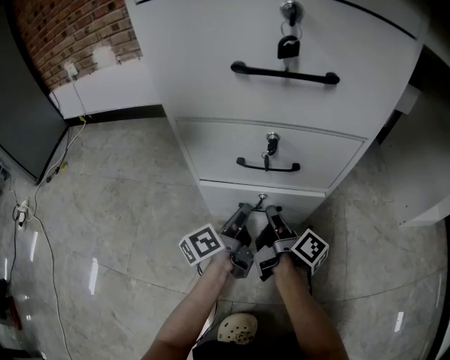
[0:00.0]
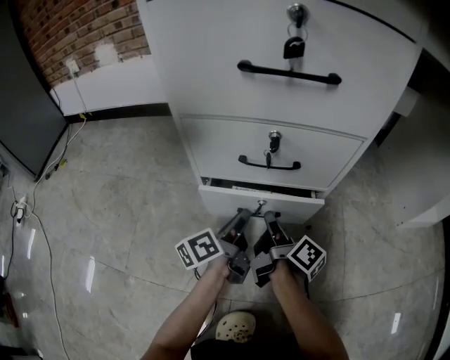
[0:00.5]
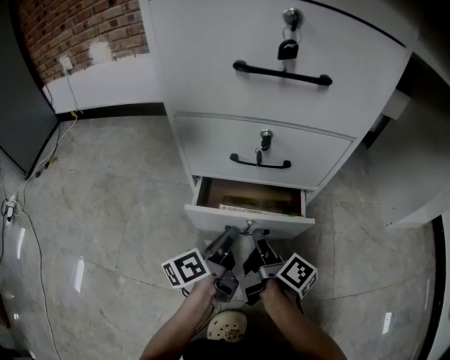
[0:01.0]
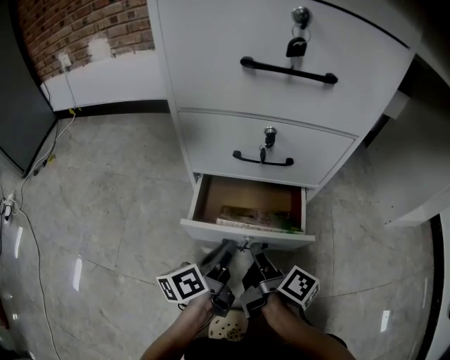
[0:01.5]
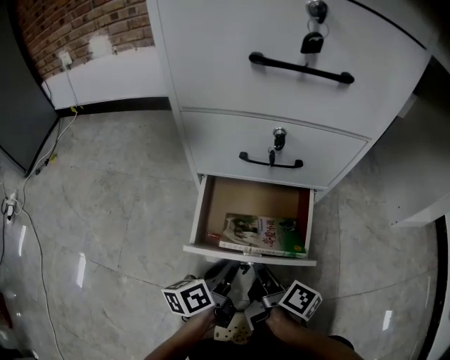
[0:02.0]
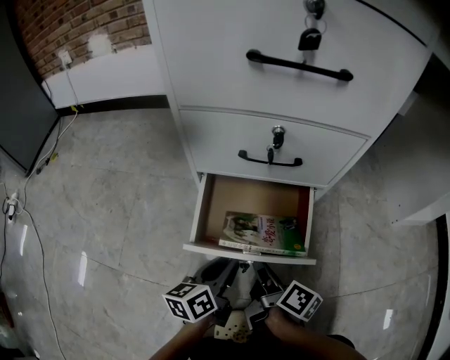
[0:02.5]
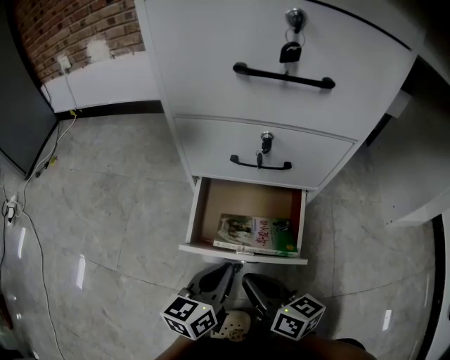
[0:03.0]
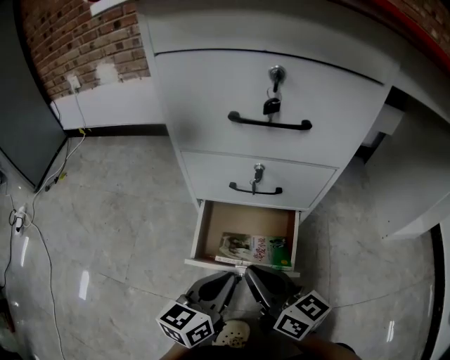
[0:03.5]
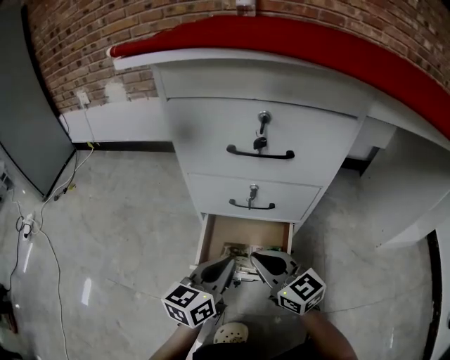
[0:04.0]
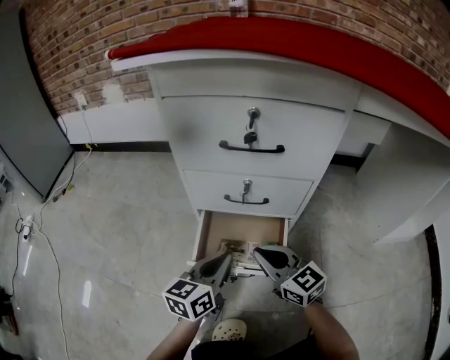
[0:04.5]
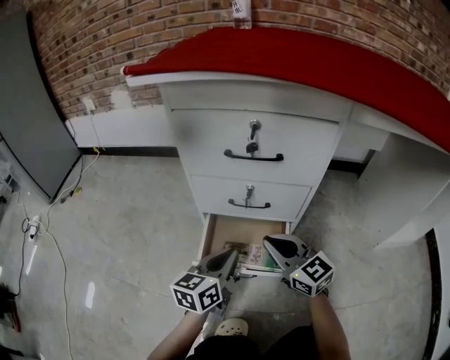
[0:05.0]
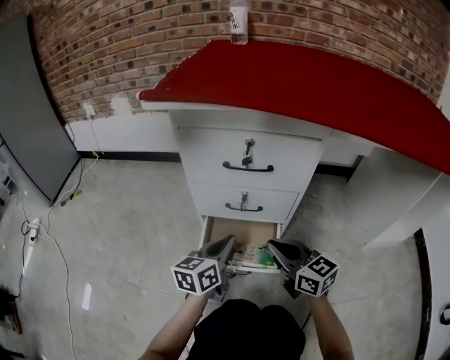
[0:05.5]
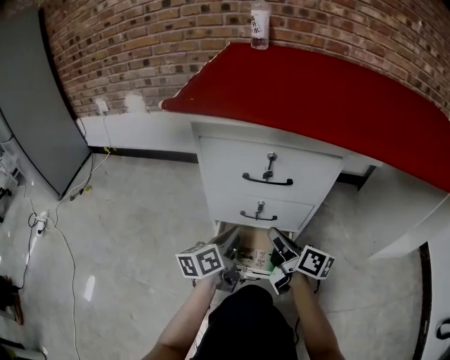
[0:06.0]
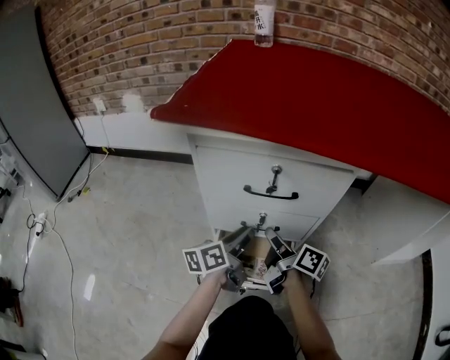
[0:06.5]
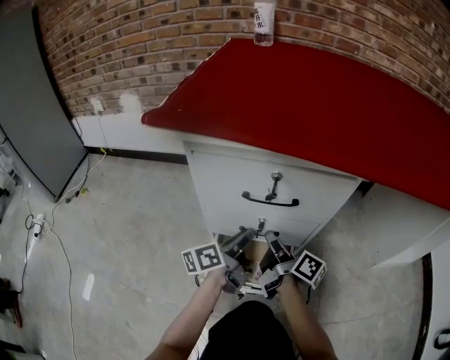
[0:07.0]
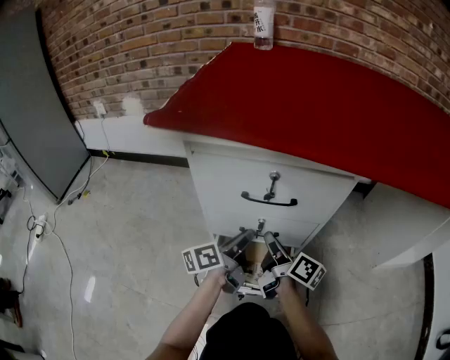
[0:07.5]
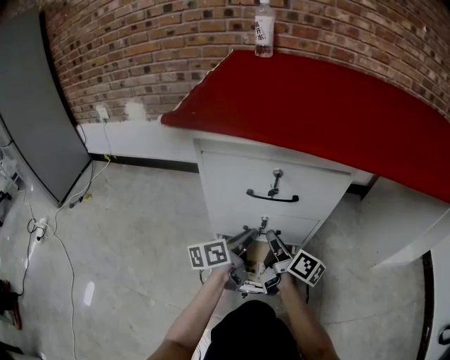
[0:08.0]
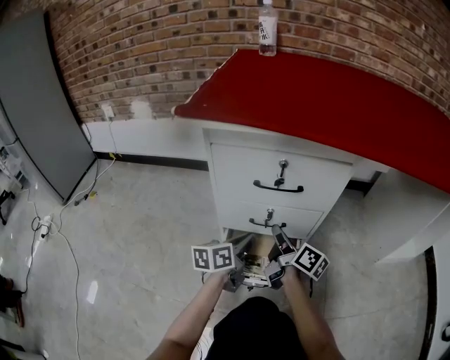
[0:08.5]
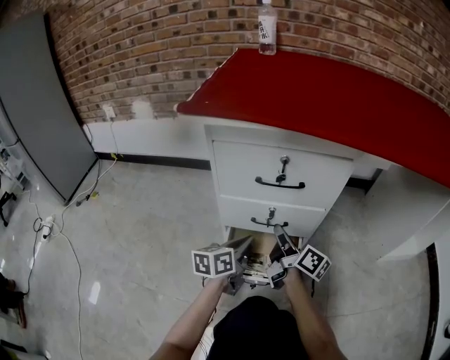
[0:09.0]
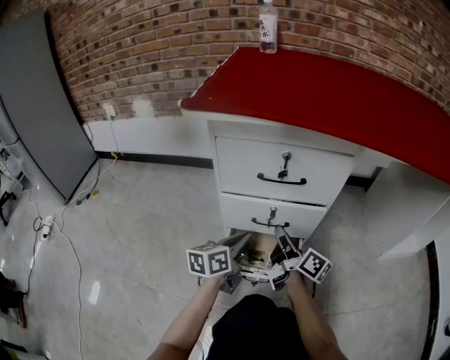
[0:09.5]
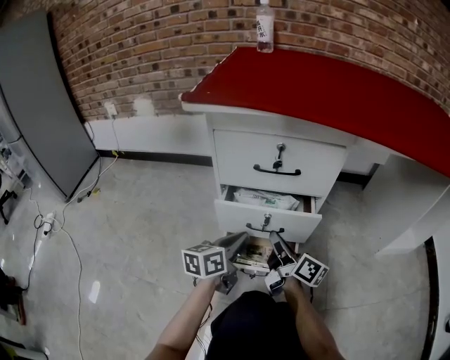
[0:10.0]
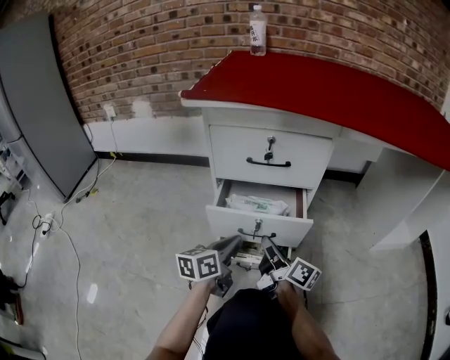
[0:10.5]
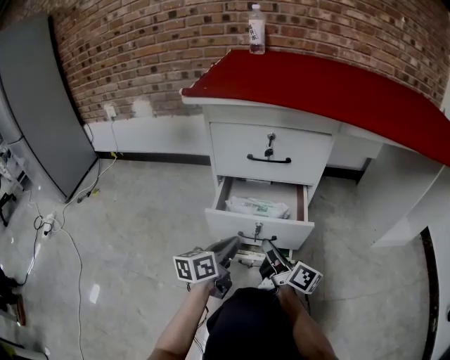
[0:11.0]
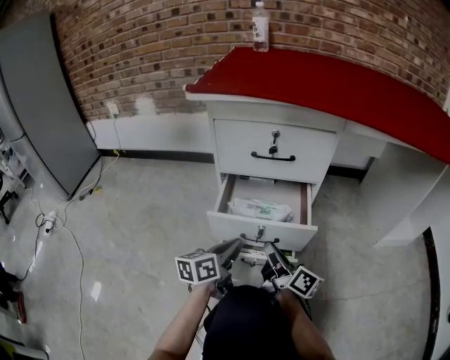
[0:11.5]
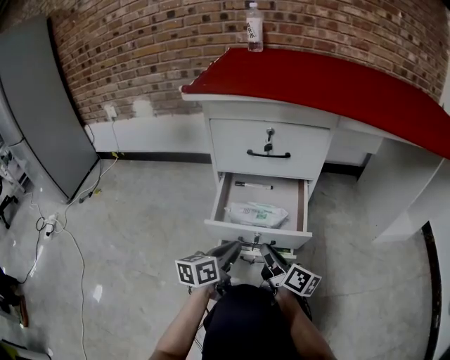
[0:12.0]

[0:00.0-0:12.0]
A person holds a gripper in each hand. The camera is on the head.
0.0 to 2.0 s: Both grippers move backward, roughly 15 cm.
2.0 to 4.0 s: The grippers both shift upward by roughly 20 cm. The left gripper turns by approximately 40 degrees; the right gripper rolls counterclockwise, seen from behind, by about 70 degrees.
4.0 to 6.0 s: The left gripper travels forward and upward by approximately 10 cm, and rotates approximately 20 degrees. Meanwhile the right gripper heads upward and forward, covering approximately 10 cm, and twists some 50 degrees clockwise, seen from behind.
6.0 to 8.0 s: The two grippers go approximately 5 cm forward.
8.0 to 10.0 s: The two grippers go approximately 10 cm backward.
10.0 to 12.0 s: Both grippers travel together backward, approximately 10 cm.

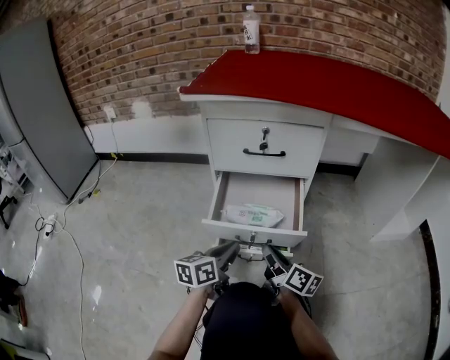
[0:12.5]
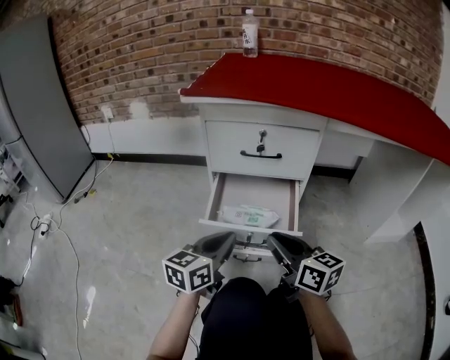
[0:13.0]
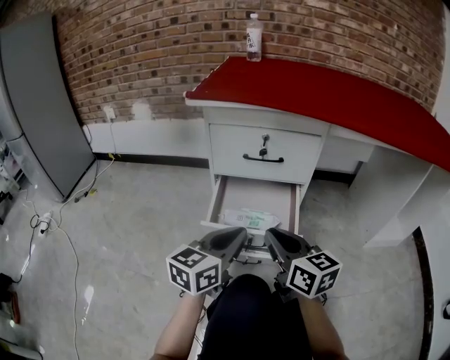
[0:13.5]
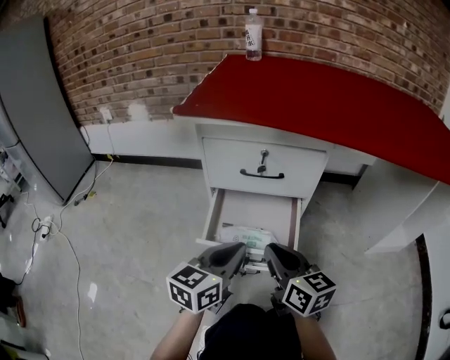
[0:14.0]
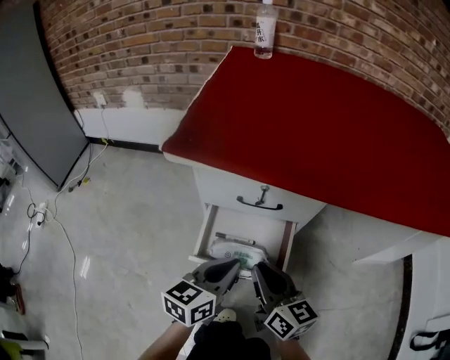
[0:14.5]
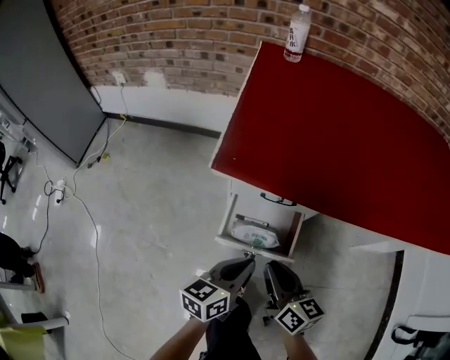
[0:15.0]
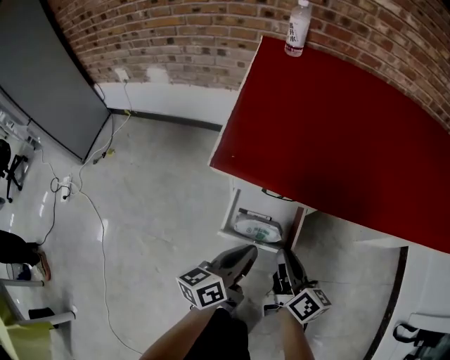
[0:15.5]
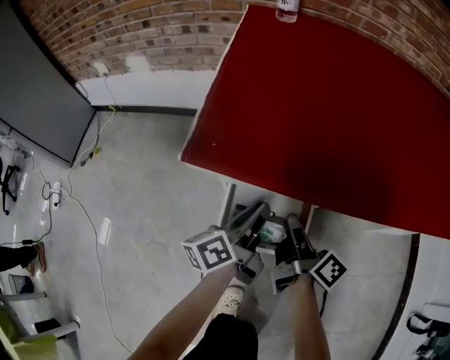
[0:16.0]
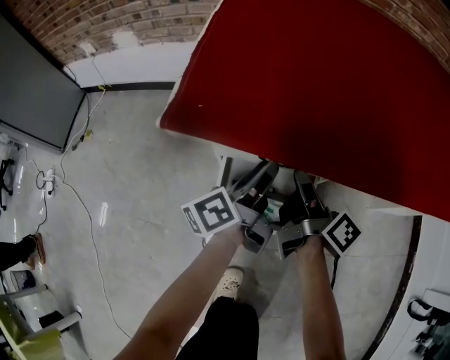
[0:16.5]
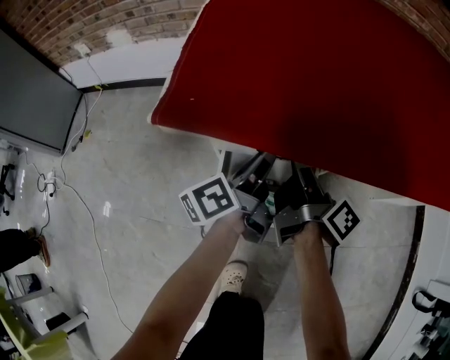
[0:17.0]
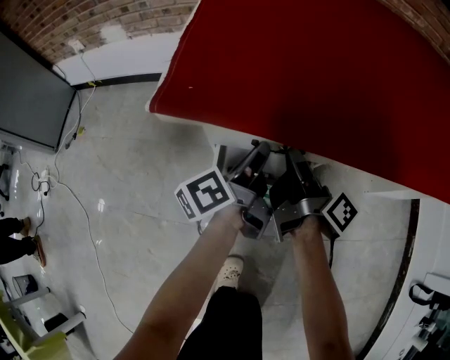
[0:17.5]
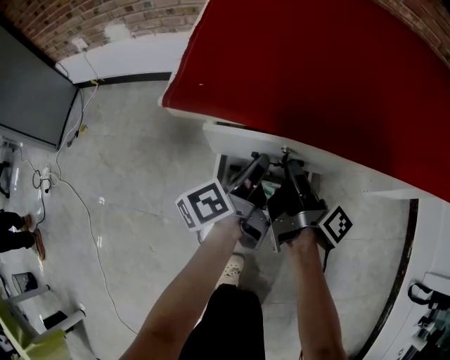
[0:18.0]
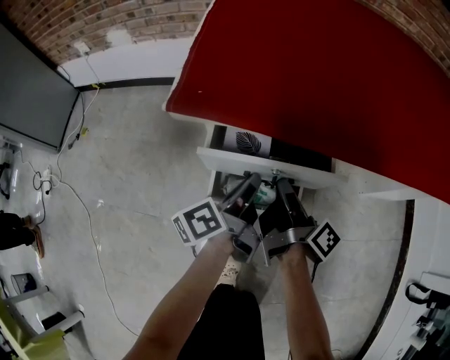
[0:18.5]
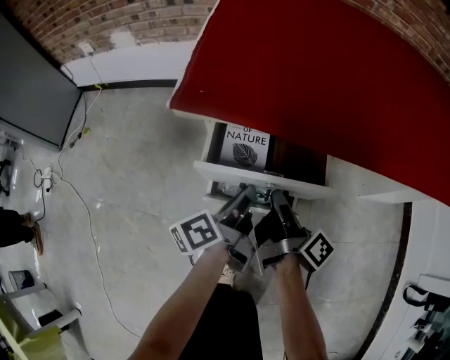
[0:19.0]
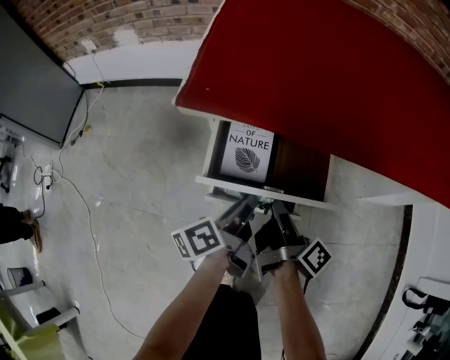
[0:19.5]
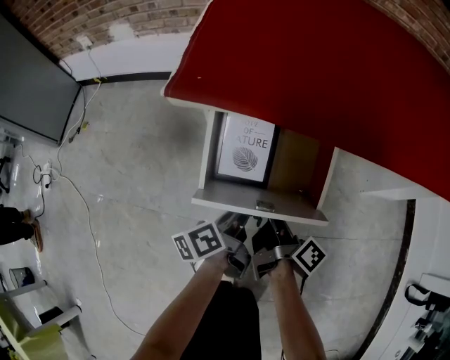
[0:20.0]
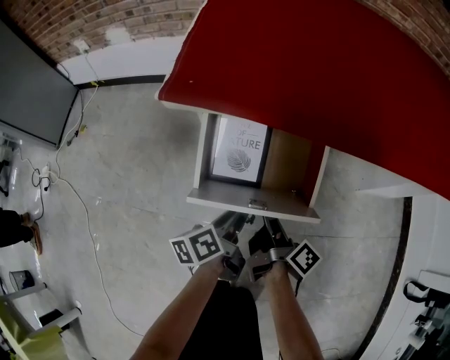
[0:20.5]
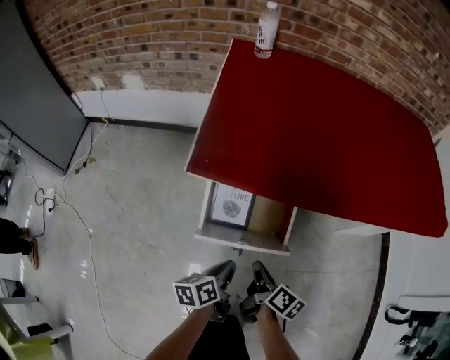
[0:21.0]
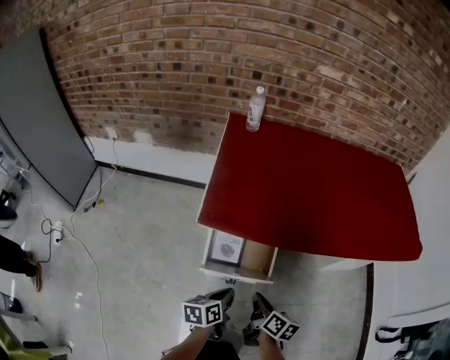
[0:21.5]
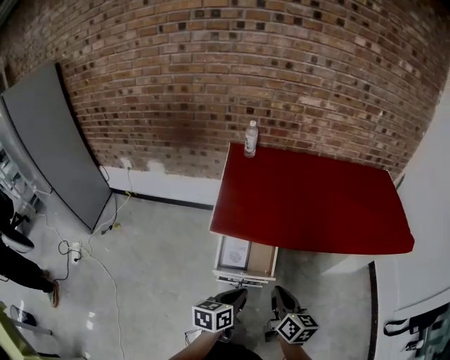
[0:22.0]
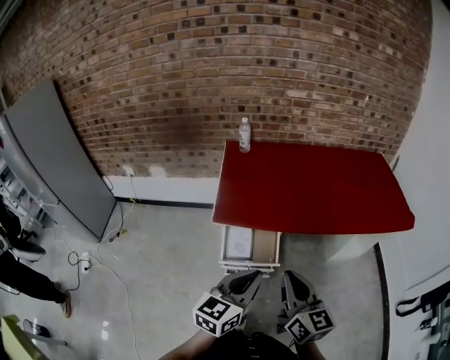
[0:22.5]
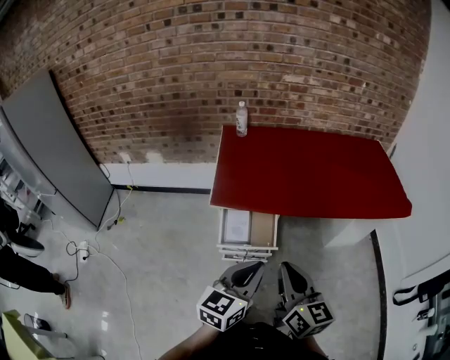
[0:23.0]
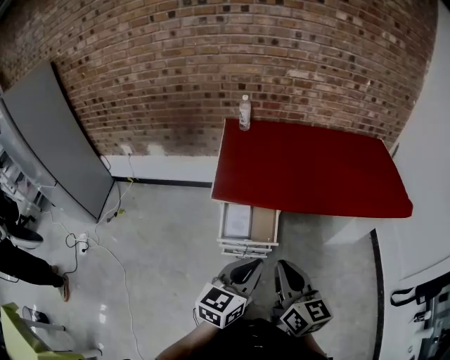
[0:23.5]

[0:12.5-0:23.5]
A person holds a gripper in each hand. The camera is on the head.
12.5 to 14.5 s: Both grippers travel together upward, about 15 cm. The right gripper changes its angle by approximately 30 degrees.
14.5 to 16.0 s: The right gripper is displaced forward by some 10 cm, and rotates around the line of its fingers by roughly 50 degrees, clockwise from behind. Meanwhile the left gripper is displaced forward and upward by about 10 cm, and twists roughly 40 degrees counterclockwise, seen from behind.
16.0 to 18.0 s: The left gripper opens and closes again.
18.0 to 20.0 s: Both grippers travel together backward and downward, roughly 15 cm.
20.0 to 21.5 s: Both grippers travel together upward, some 20 cm. The left gripper turns by some 30 degrees; the right gripper swivels roughly 40 degrees.
21.5 to 23.5 s: The right gripper moves upward and backward, about 35 cm, and rotates about 40 degrees. Meanwhile the left gripper heads upward, covering approximately 30 cm, and swivels some 40 degrees.

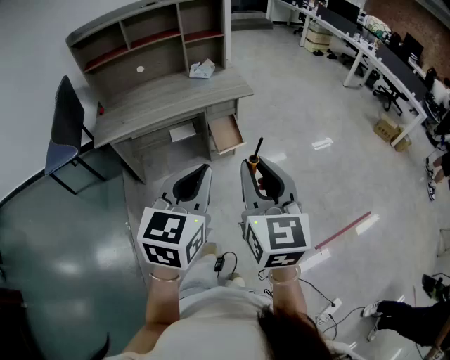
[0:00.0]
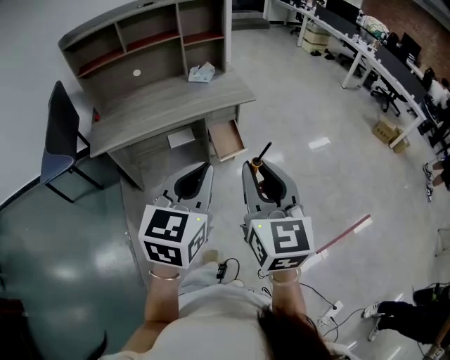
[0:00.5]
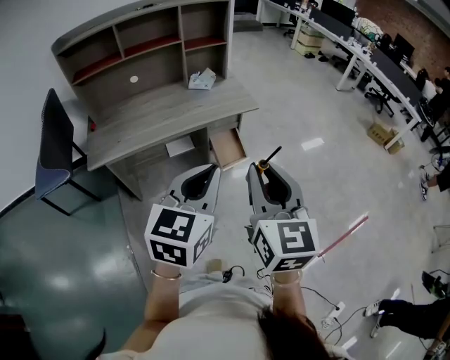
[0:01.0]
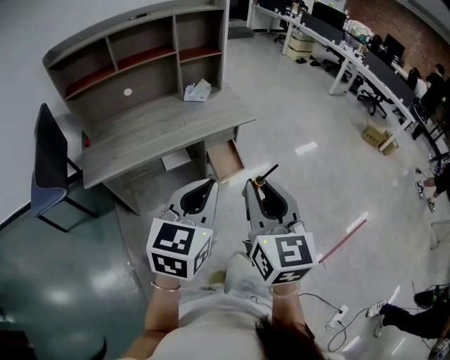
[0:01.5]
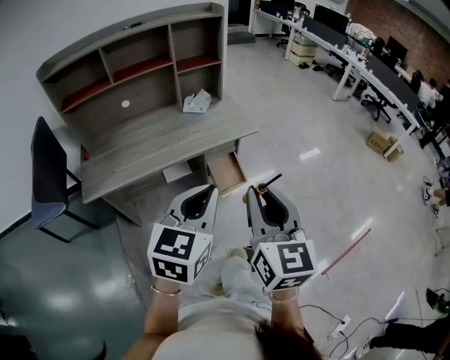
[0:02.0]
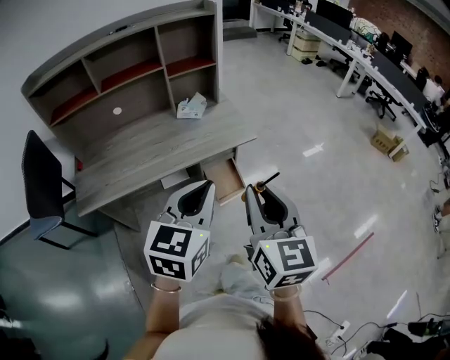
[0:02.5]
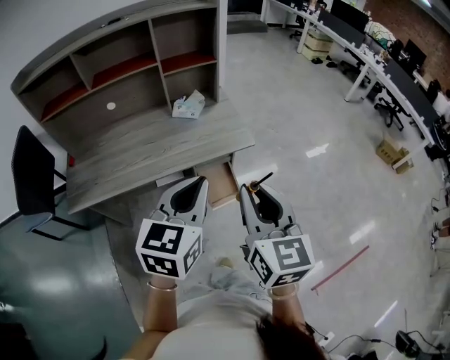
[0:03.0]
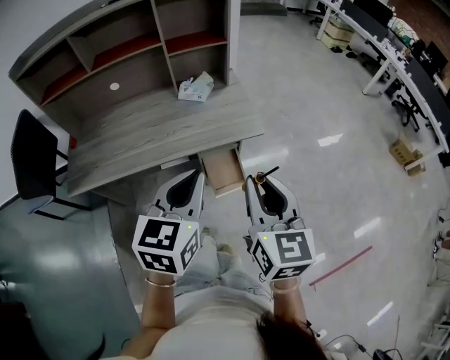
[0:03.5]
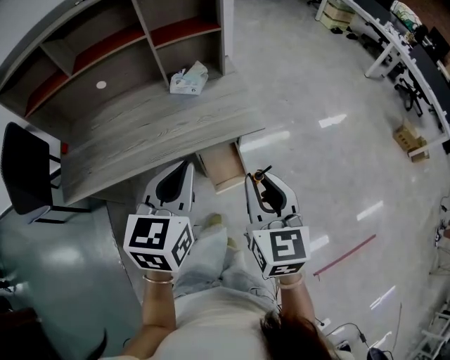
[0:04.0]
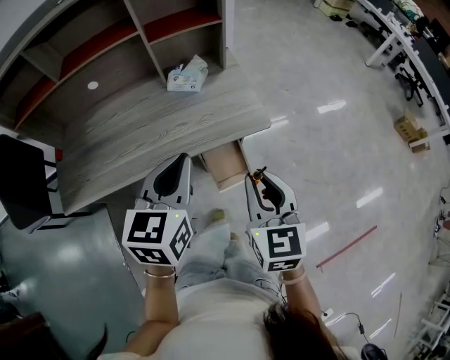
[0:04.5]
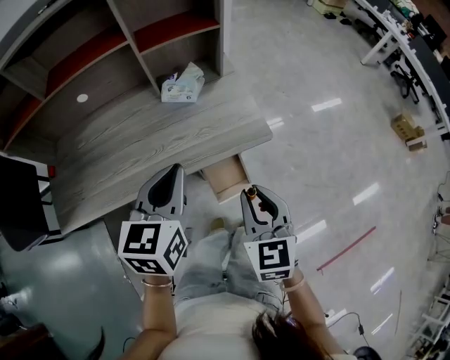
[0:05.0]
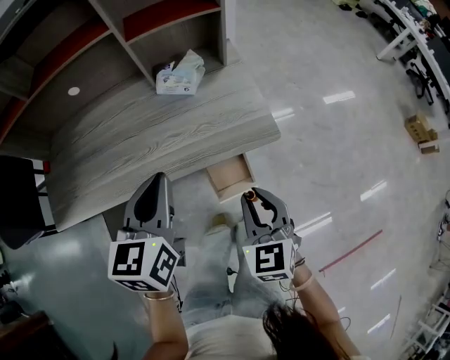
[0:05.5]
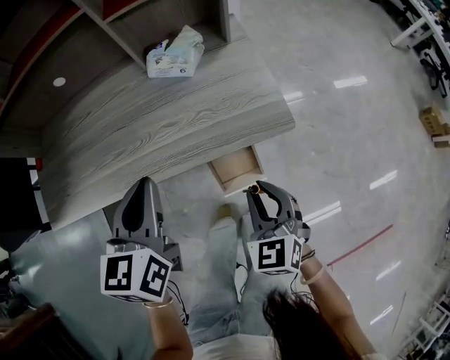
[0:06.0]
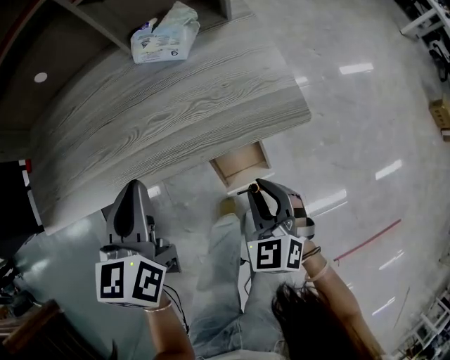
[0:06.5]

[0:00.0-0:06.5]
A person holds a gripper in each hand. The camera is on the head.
0.0 to 2.0 s: Both grippers move forward and to the left, about 20 cm.
2.0 to 4.5 s: The right gripper shifts about 35 cm forward and downward, and rotates about 20 degrees; the left gripper heads forward, covering some 30 cm.
4.5 to 6.5 s: The right gripper is displaced downward by roughly 30 cm, and changes its angle by about 30 degrees; the left gripper goes some 20 cm downward and forward, and turns by roughly 20 degrees.
